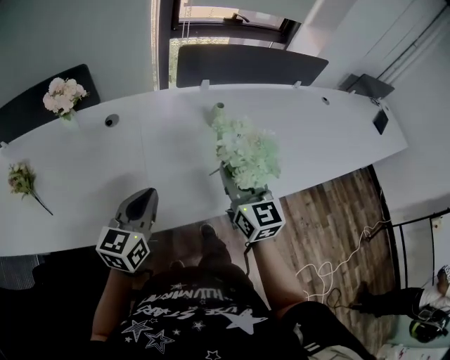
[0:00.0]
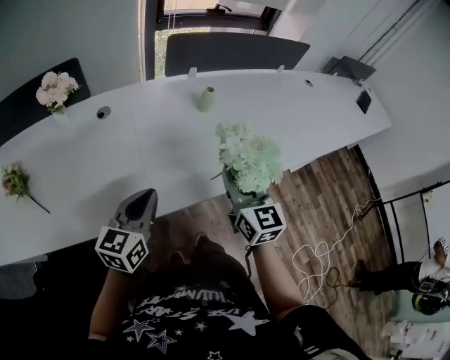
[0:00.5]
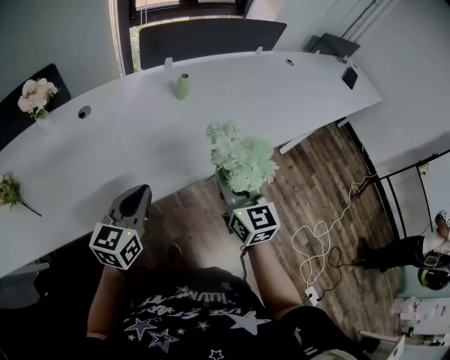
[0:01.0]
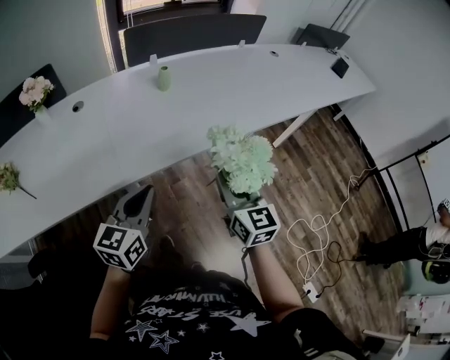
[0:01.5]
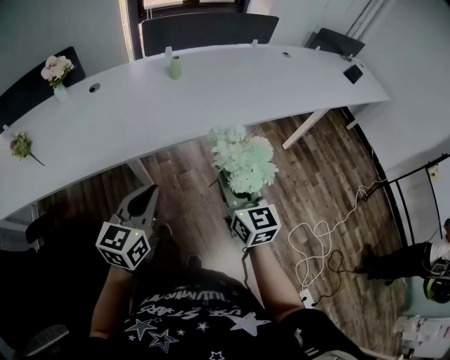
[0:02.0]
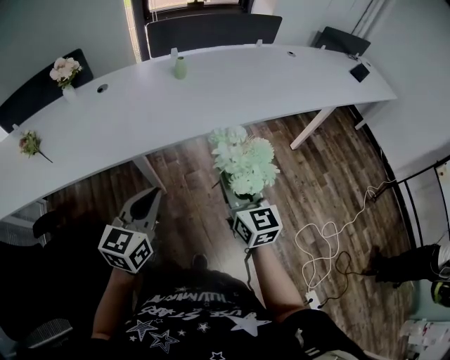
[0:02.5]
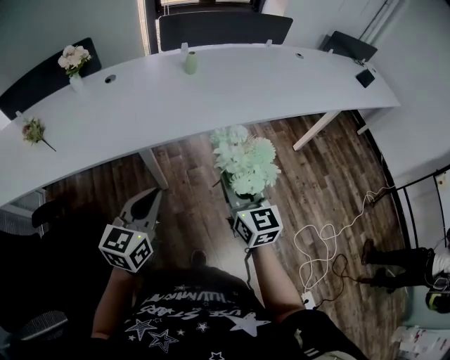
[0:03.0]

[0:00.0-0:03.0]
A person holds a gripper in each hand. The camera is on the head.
0:00.0 to 0:01.5: The grippers both shift backward and to the right by about 25 cm.
0:01.5 to 0:03.0: Both grippers travel together backward, approximately 10 cm.

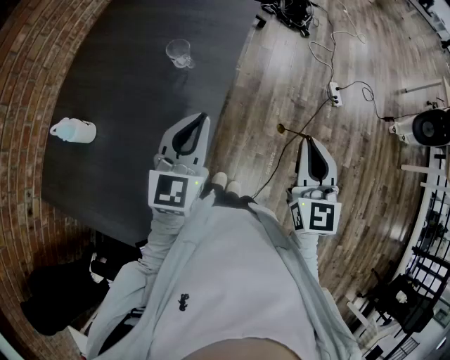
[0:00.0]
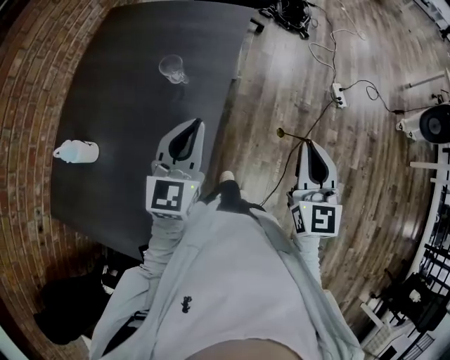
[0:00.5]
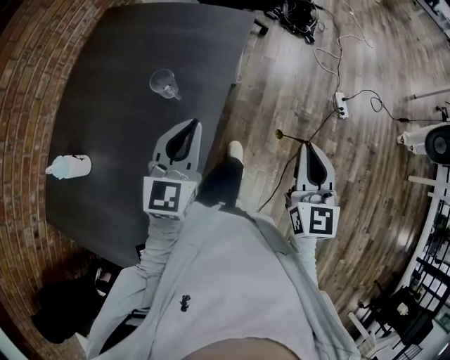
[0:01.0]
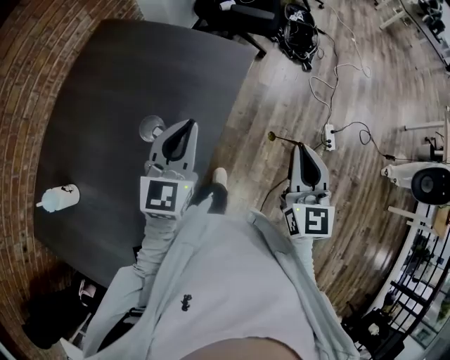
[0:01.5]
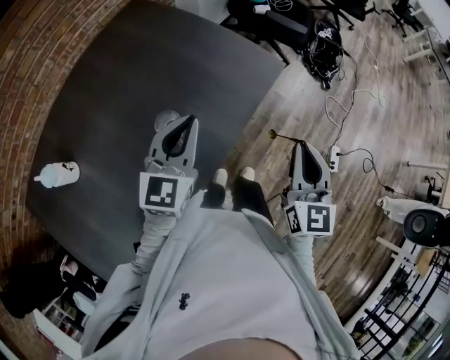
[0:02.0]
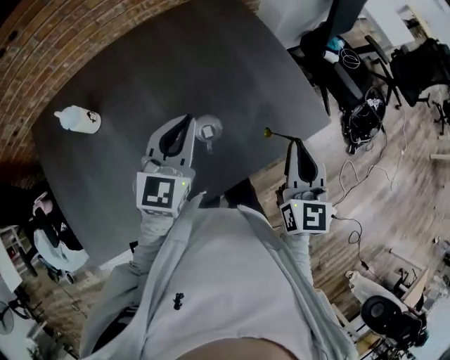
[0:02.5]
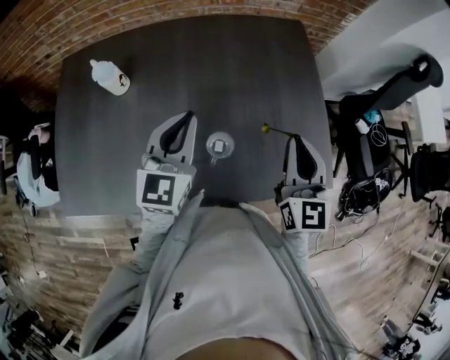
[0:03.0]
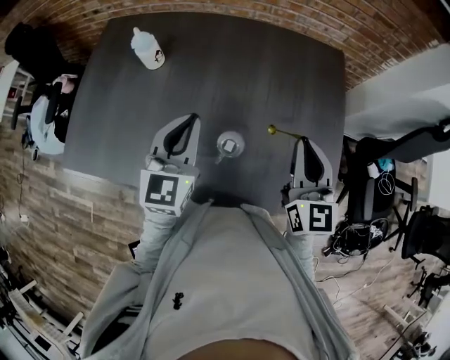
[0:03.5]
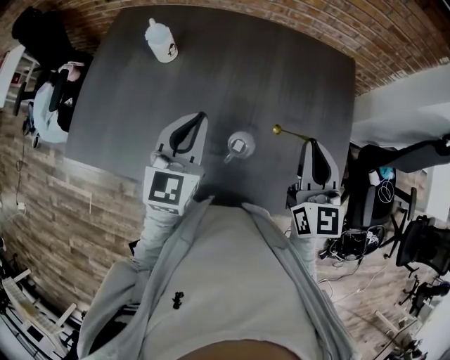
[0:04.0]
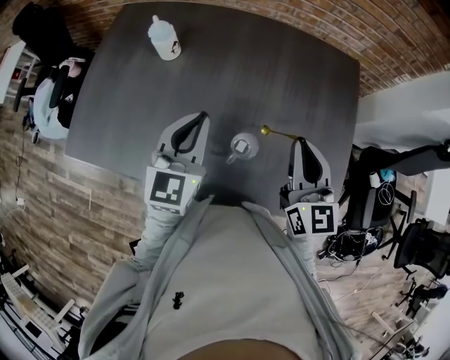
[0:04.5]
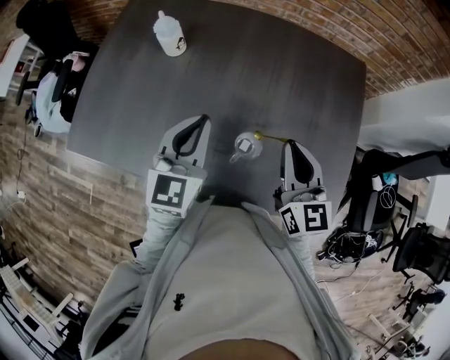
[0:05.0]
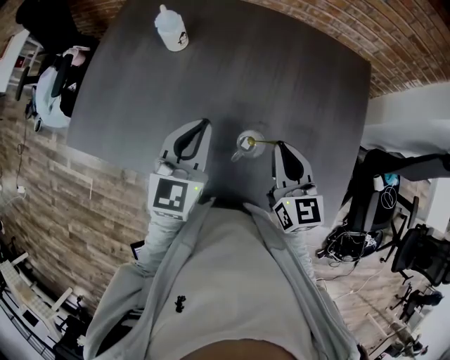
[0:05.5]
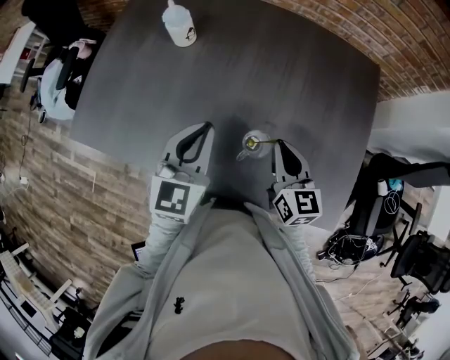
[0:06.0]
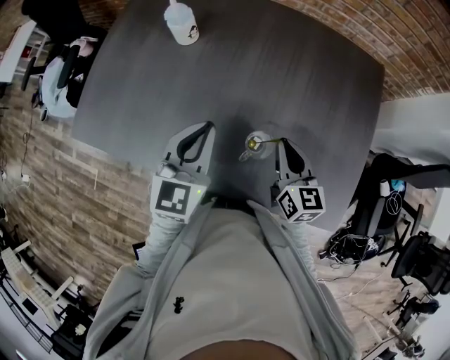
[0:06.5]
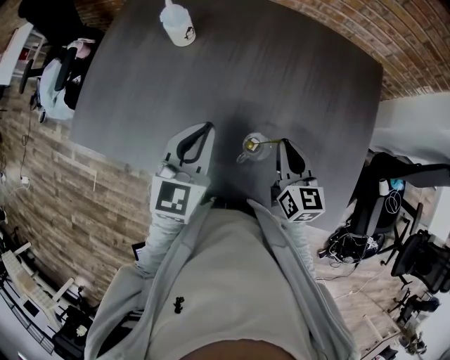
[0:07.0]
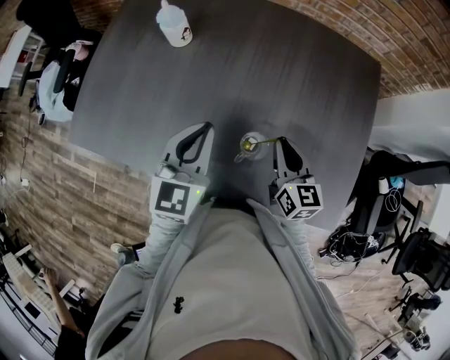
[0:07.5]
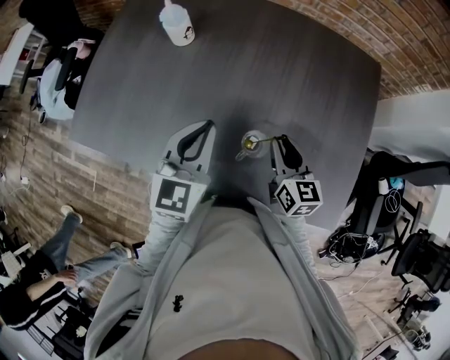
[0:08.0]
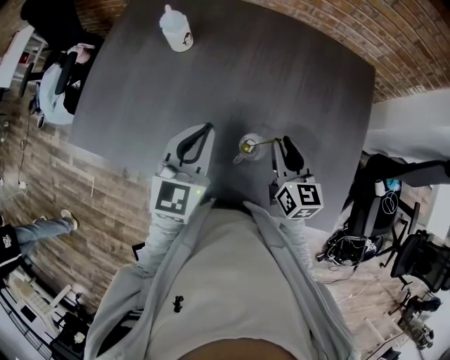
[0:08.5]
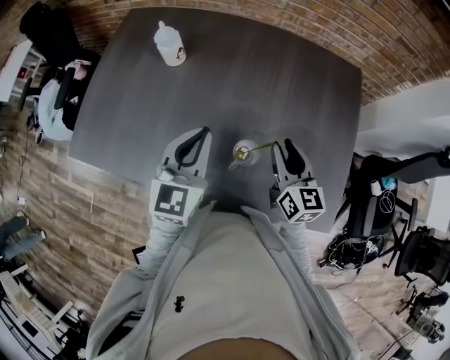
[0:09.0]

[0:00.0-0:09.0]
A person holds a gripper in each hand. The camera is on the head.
0:00.0 to 0:02.0: The grippers both shift forward by about 30 cm.
0:02.0 to 0:04.5: The left gripper moves some 20 cm, and rotates some 70 degrees. Meanwhile the right gripper ends up roughly 35 cm from where it was, and turns by some 80 degrees.
0:04.5 to 0:07.0: The right gripper shifts some 15 cm downward, and swivels roughly 20 degrees.
0:07.0 to 0:09.0: The right gripper opens up.

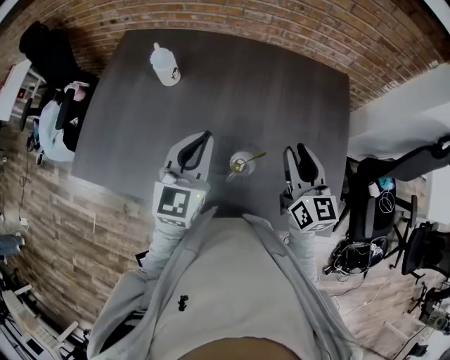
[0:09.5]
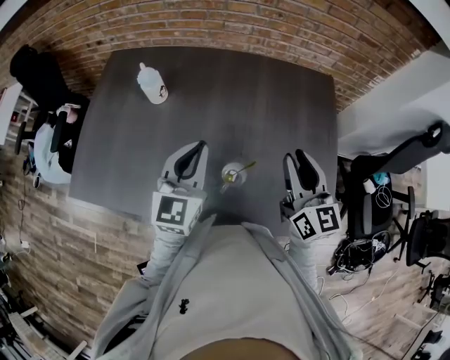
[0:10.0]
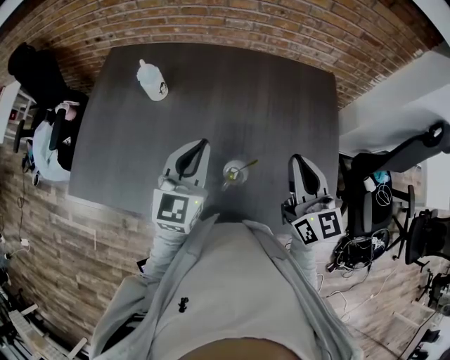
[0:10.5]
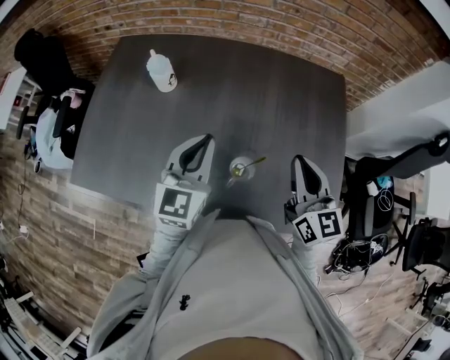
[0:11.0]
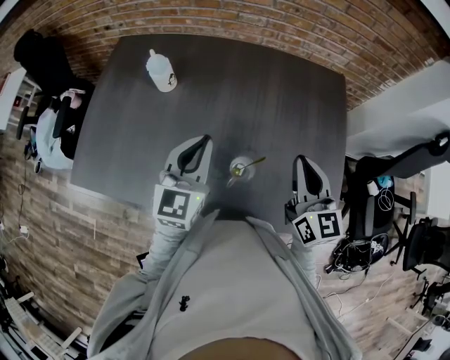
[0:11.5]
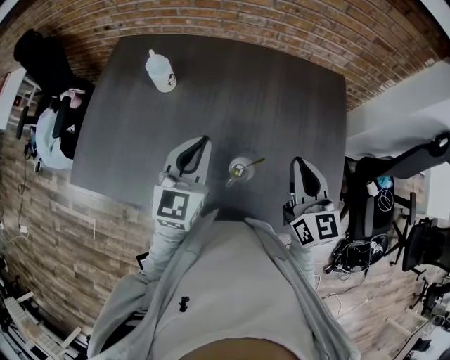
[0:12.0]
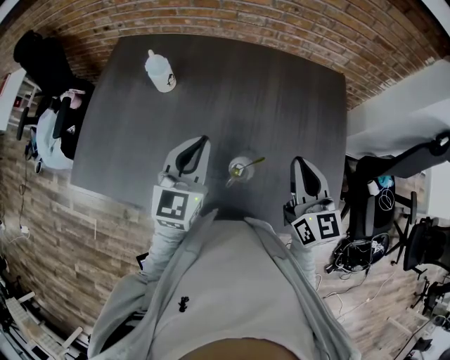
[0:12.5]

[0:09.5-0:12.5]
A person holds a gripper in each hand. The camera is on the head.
0:09.5 to 0:11.0: The right gripper closes up.
0:11.0 to 0:12.5: Both grippers stay about where they are.

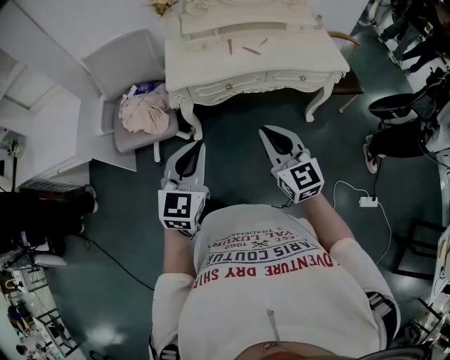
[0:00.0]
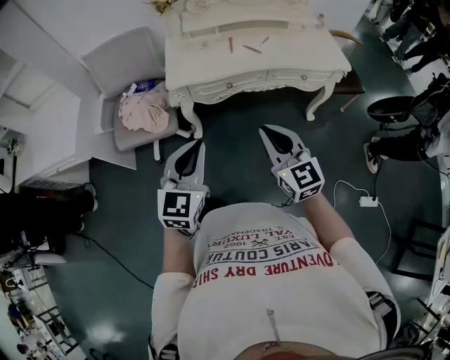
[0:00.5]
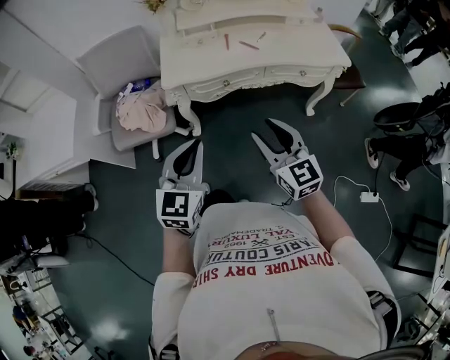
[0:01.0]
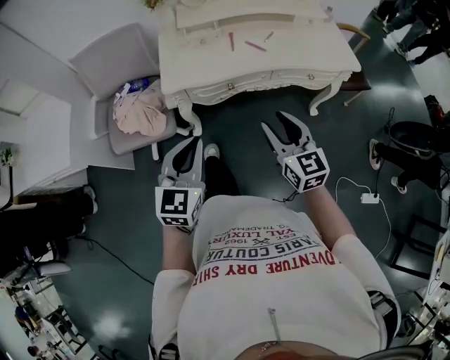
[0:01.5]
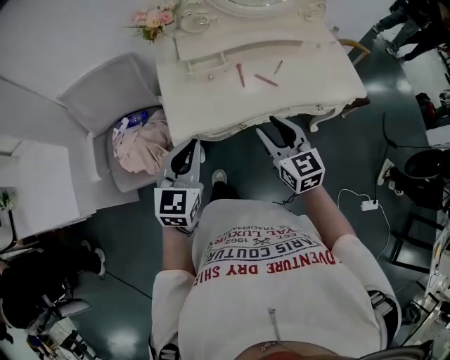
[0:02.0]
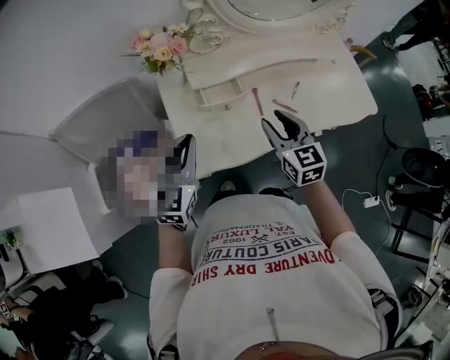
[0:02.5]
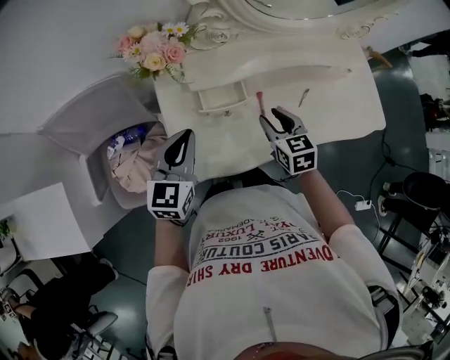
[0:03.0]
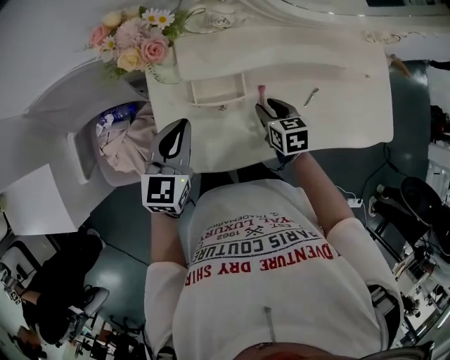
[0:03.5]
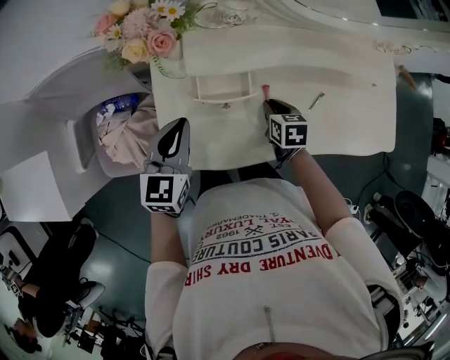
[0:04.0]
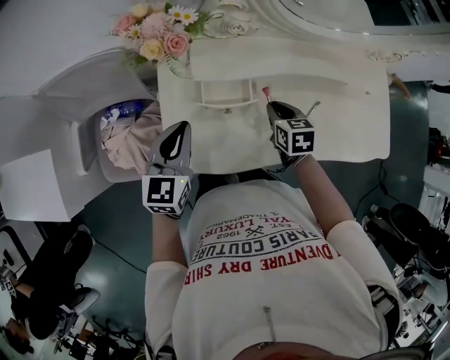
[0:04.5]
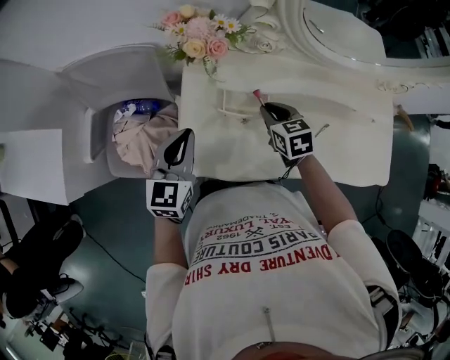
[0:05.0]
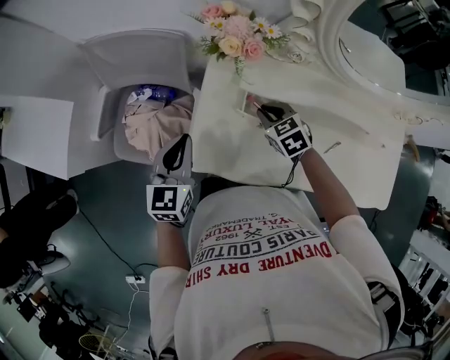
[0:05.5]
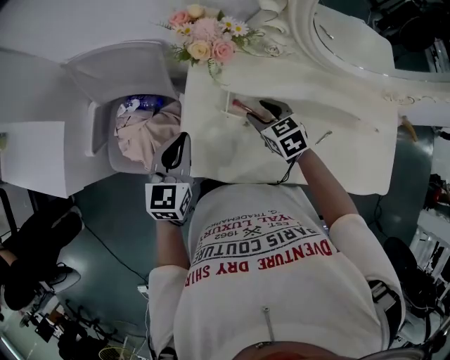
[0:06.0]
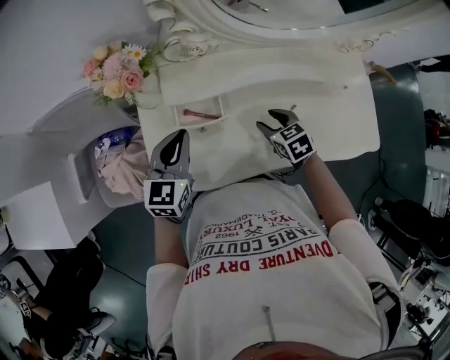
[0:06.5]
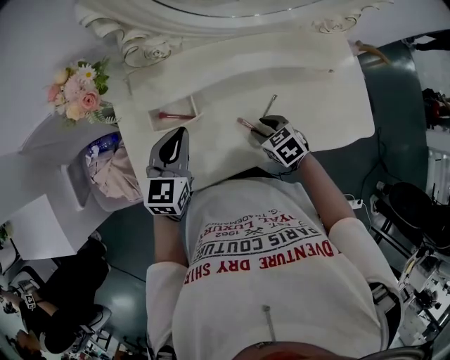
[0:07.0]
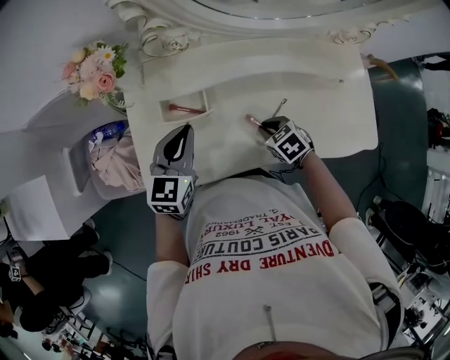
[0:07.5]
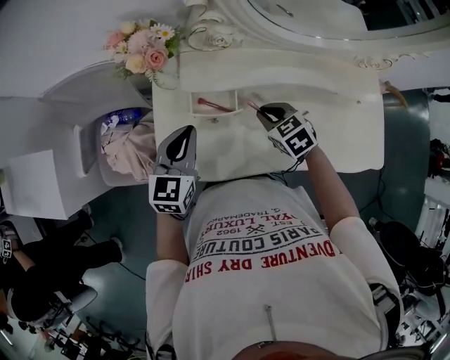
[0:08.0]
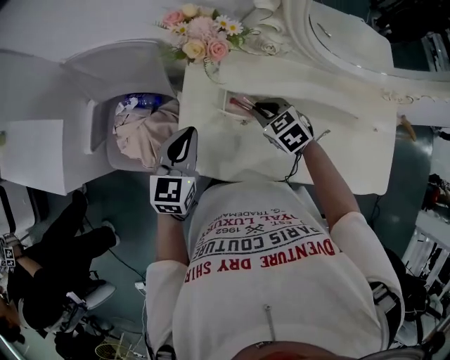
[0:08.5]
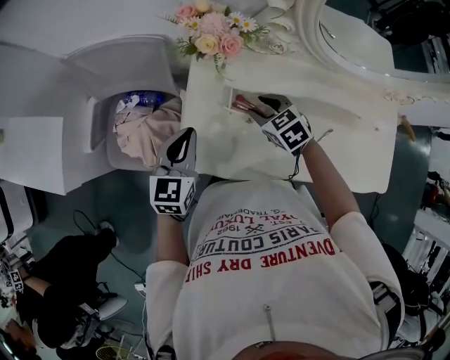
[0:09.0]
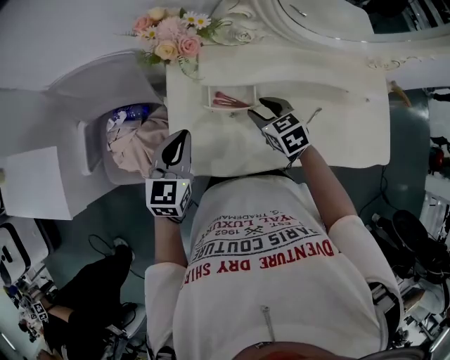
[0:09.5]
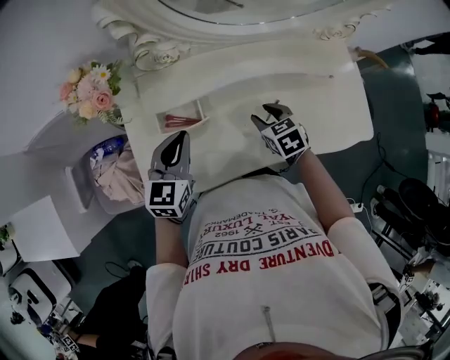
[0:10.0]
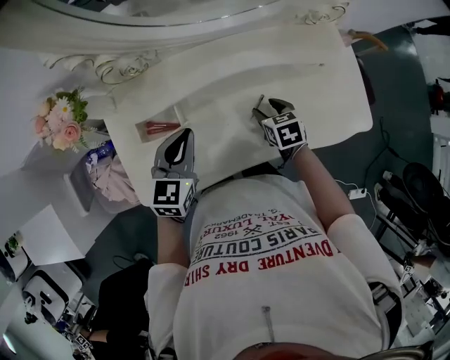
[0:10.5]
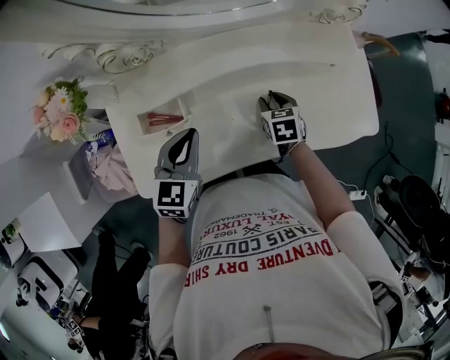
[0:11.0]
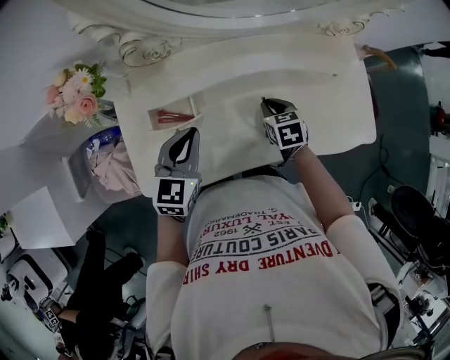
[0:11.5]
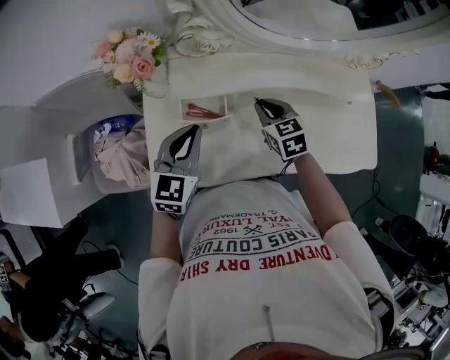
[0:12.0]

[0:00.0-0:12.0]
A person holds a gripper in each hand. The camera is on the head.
0:00.0 to 0:02.0: Both grippers move forward, some 30 cm. The right gripper opens.
0:02.0 to 0:04.0: The left gripper moves forward, roughly 25 cm, while the right gripper moves forward and downward, about 35 cm, and tips its fingers downward by roughly 40 degrees.
0:04.0 to 0:06.0: The right gripper moves roughly 15 cm, rotates roughly 40 degrees, and opens.
0:06.0 to 0:08.0: The two grippers go approximately 10 cm to the right. The right gripper closes up.
0:08.0 to 0:10.0: Both grippers move to the right, some 10 cm. The right gripper changes its angle by roughly 20 degrees, and opens up.
0:10.0 to 0:12.0: The right gripper goes some 5 cm to the left, and closes; the left gripper moves about 10 cm to the right and comes back.
